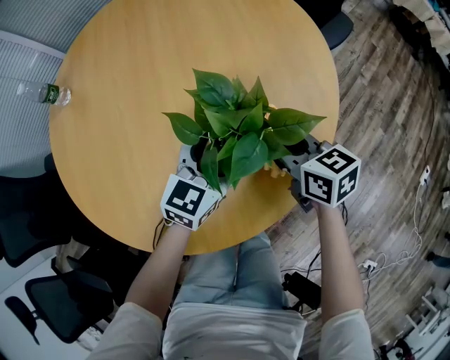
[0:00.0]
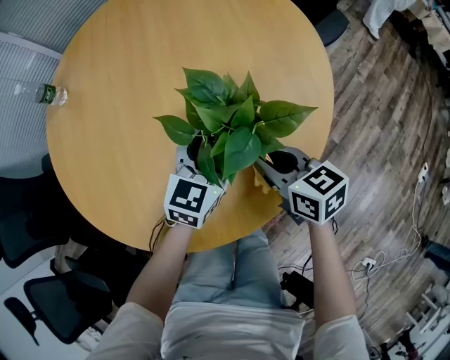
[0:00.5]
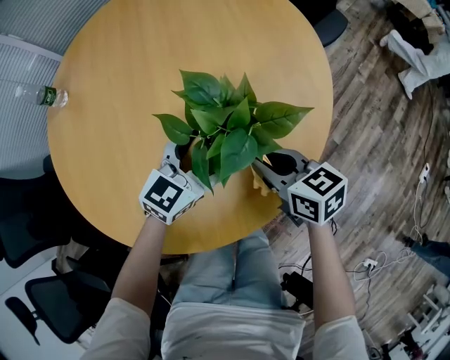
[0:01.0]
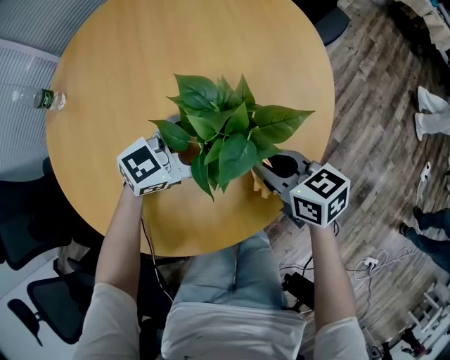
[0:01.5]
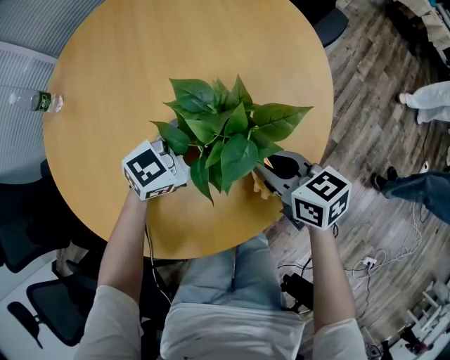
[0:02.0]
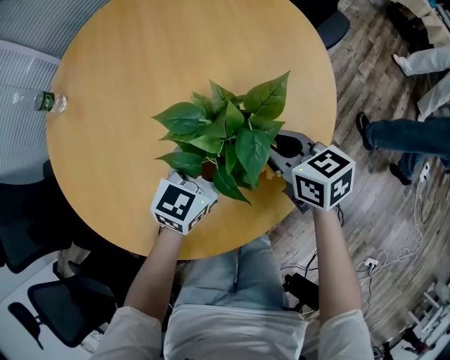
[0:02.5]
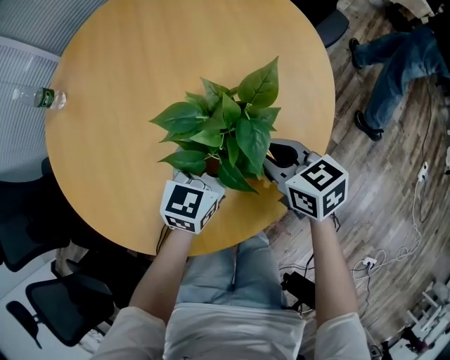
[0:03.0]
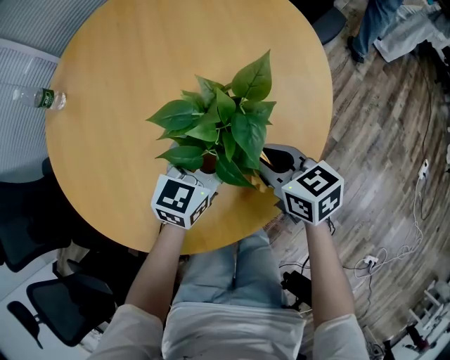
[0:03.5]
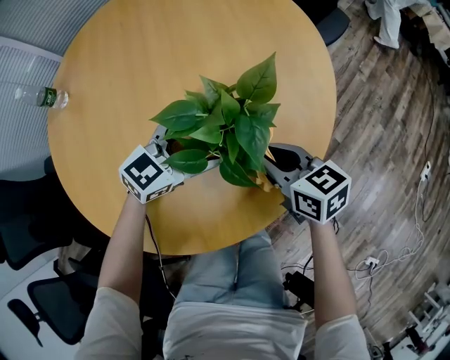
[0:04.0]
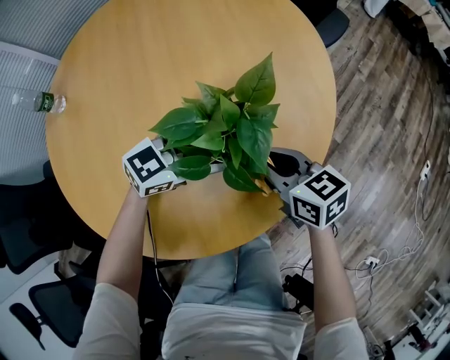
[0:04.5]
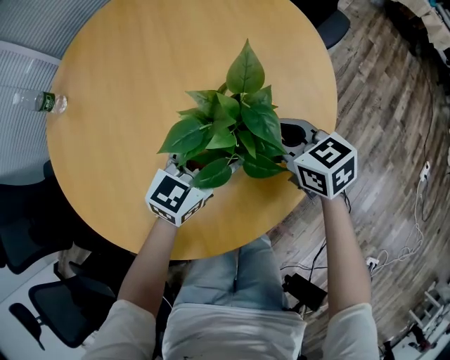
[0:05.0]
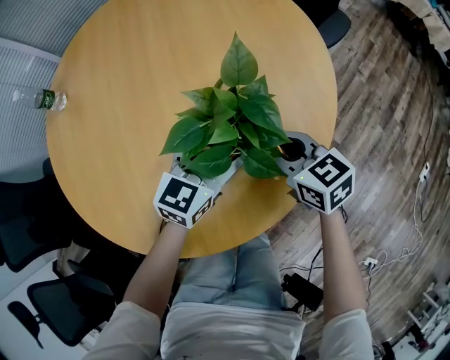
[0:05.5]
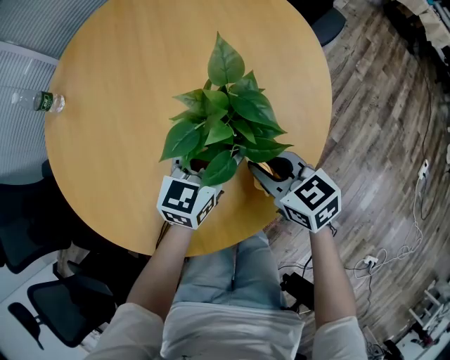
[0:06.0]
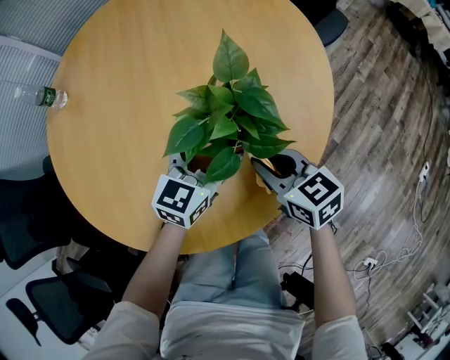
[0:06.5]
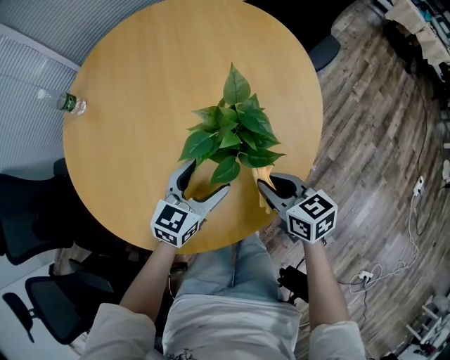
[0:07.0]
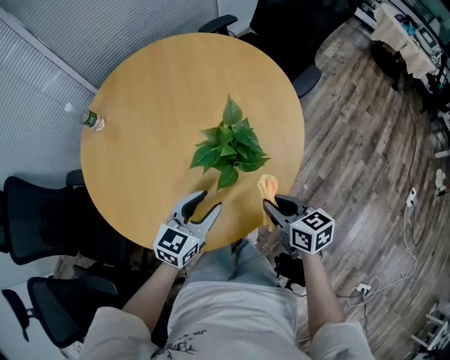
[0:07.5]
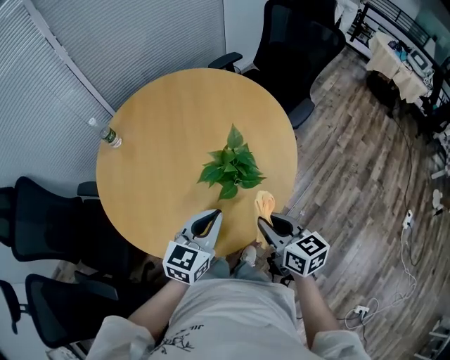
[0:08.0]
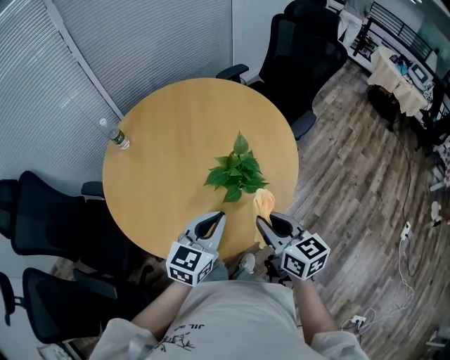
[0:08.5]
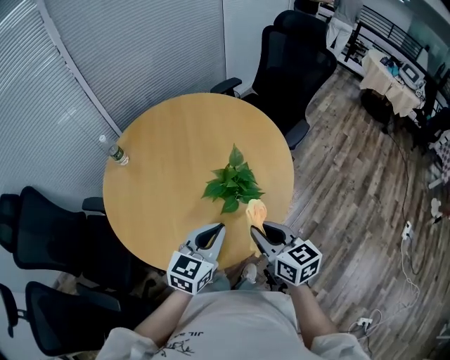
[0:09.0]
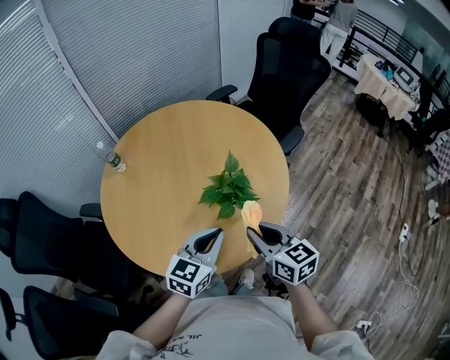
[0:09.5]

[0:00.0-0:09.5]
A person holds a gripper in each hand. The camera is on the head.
0:00.0 to 0:02.0: The left gripper turns by about 30 degrees.
0:04.0 to 0:05.5: The left gripper rotates approximately 30 degrees.
0:05.5 to 0:07.5: The right gripper moves backward and upward, some 15 cm. The left gripper goes approximately 15 cm backward, upward and to the left, and closes its fingers.
0:07.5 to 0:09.5: Both grippers travel together upward, approximately 15 cm. The left gripper closes its fingers.

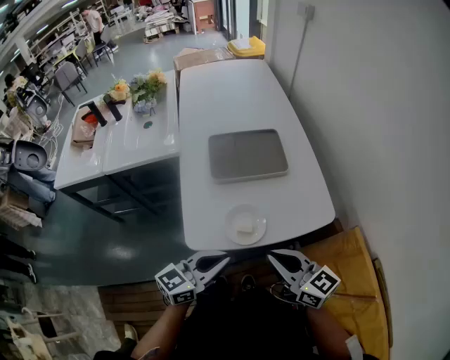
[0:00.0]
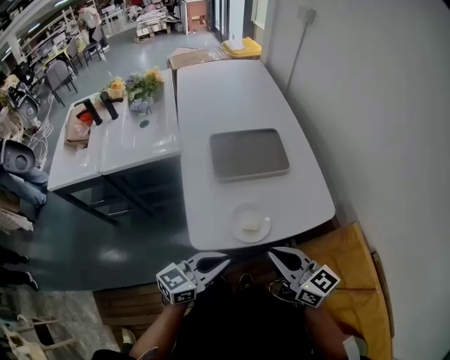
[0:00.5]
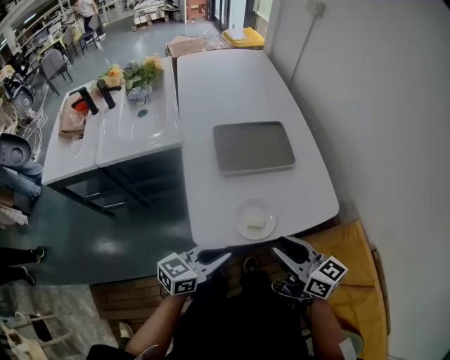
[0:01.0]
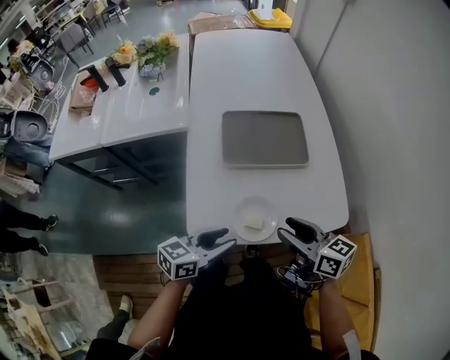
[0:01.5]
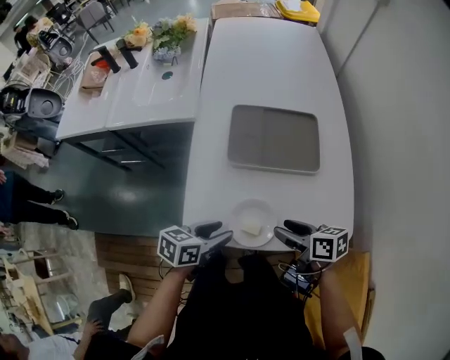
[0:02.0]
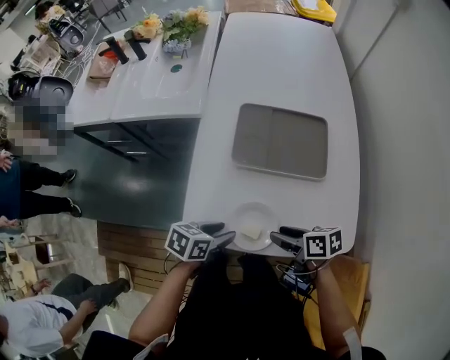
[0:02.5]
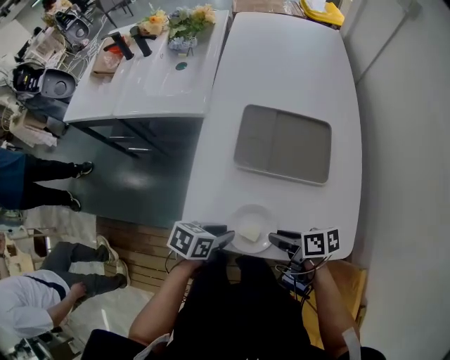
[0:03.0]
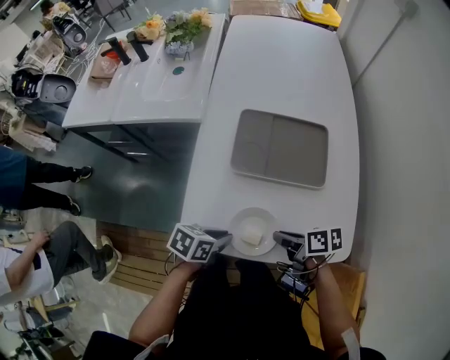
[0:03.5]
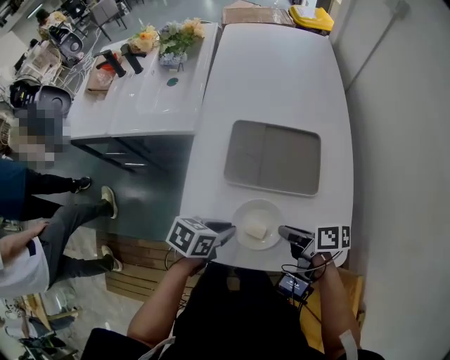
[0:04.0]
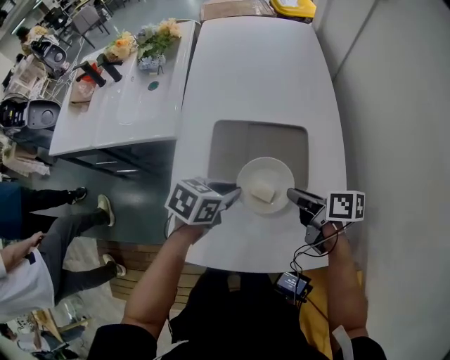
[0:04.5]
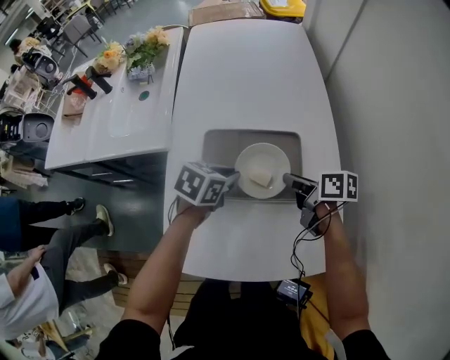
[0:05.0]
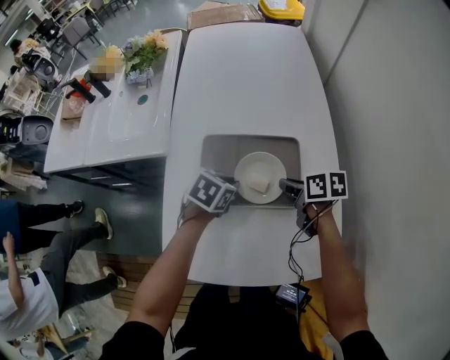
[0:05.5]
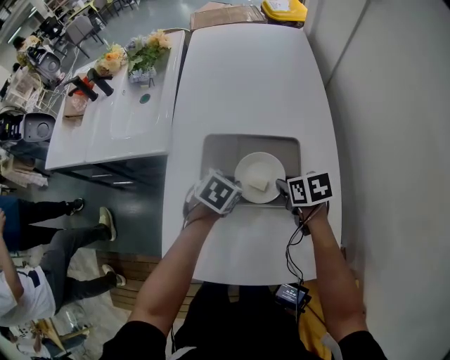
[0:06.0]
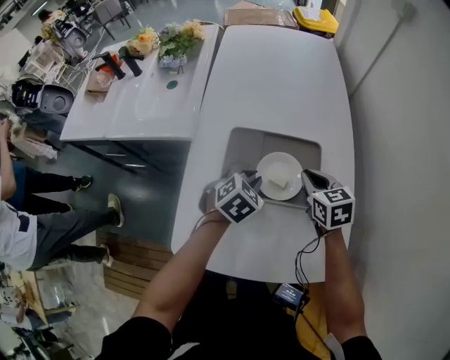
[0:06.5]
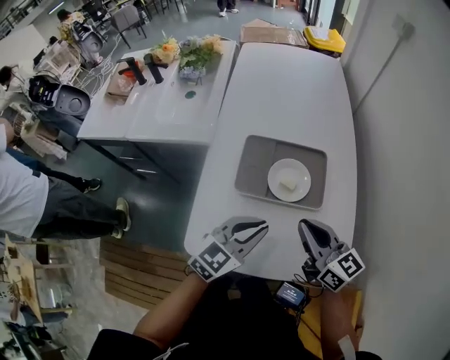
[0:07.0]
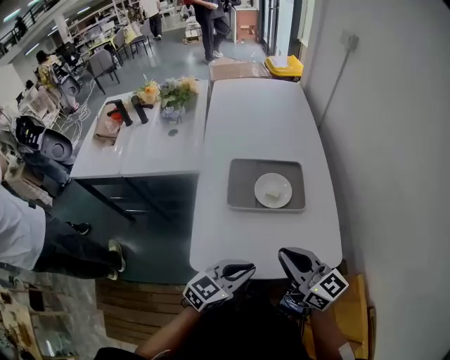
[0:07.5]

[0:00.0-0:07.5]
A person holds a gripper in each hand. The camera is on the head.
0:00.0 to 0:02.0: Both grippers move downward and forward, some 20 cm. The right gripper changes its angle by some 40 degrees, and opens its fingers, while the left gripper rotates roughly 40 degrees, and opens up.
0:02.0 to 0:04.0: The left gripper shifts by roughly 10 cm, and closes up. Meanwhile the right gripper ends up some 5 cm from where it was, and closes.
0:04.0 to 0:05.5: The right gripper ends up some 20 cm from where it was, and swivels some 20 degrees. The left gripper ends up roughly 20 cm from where it was, and changes its angle by roughly 20 degrees.
0:05.5 to 0:07.5: Both grippers travel together backward and upward, roughly 35 cm. The right gripper tips its fingers upward by about 40 degrees. The left gripper tips its fingers upward by approximately 40 degrees.

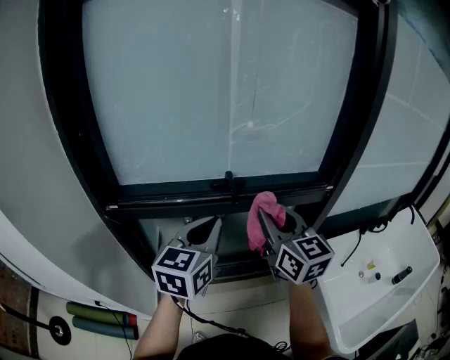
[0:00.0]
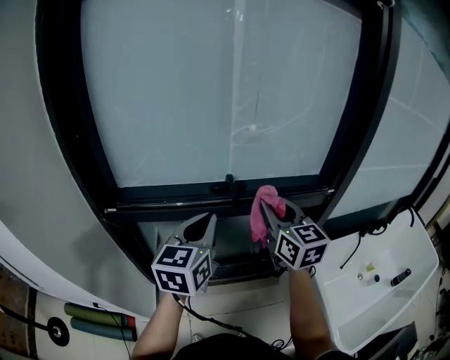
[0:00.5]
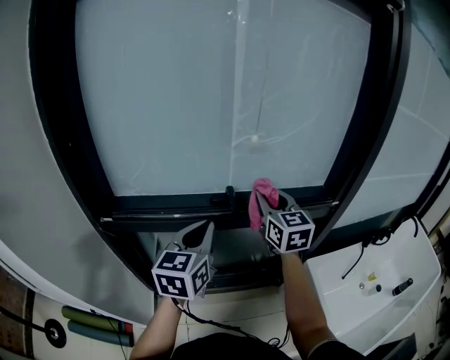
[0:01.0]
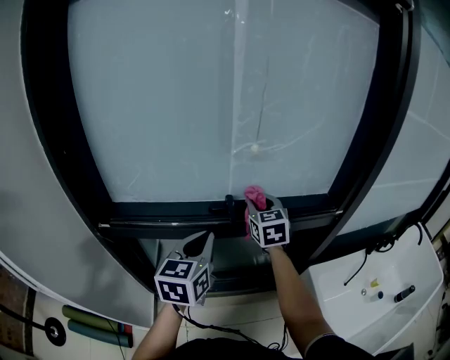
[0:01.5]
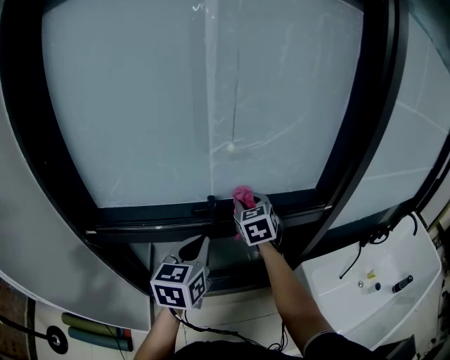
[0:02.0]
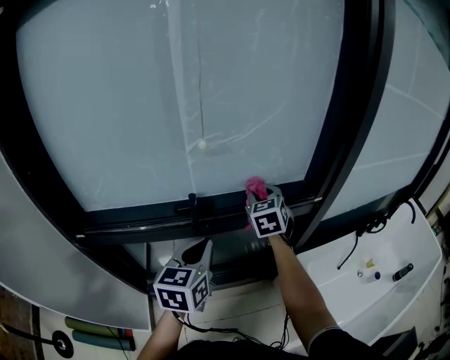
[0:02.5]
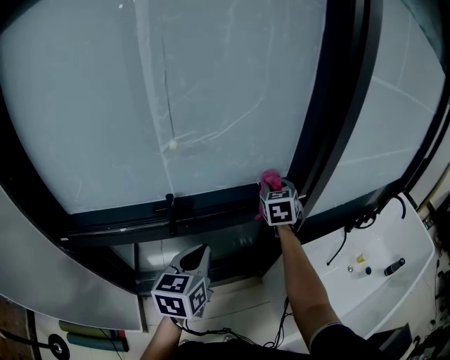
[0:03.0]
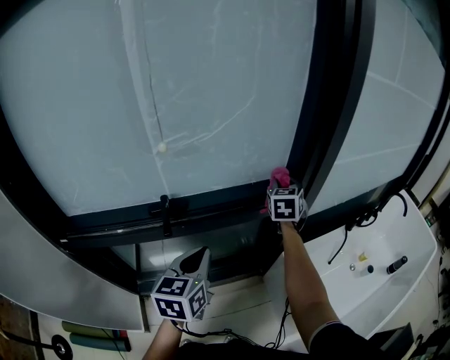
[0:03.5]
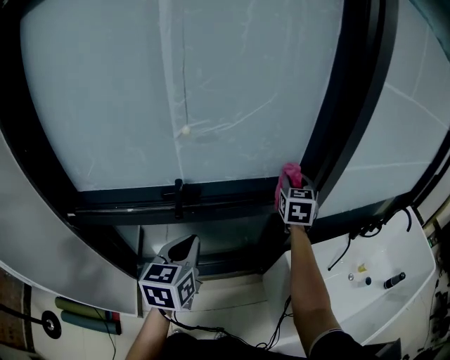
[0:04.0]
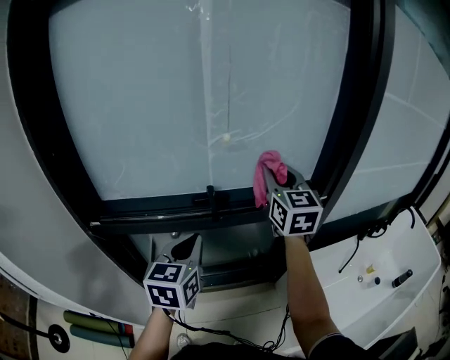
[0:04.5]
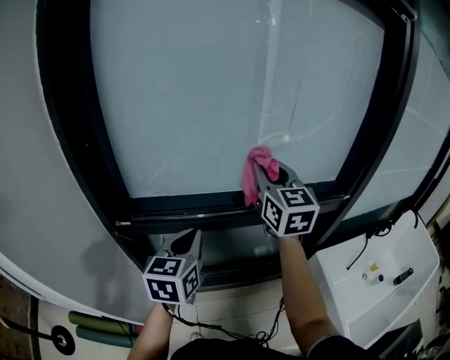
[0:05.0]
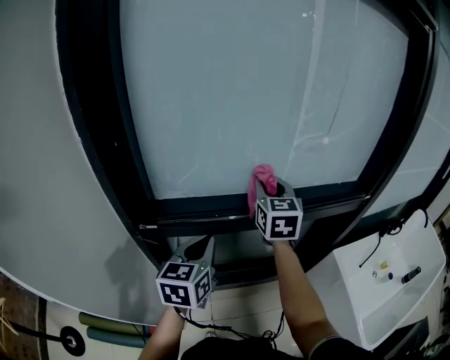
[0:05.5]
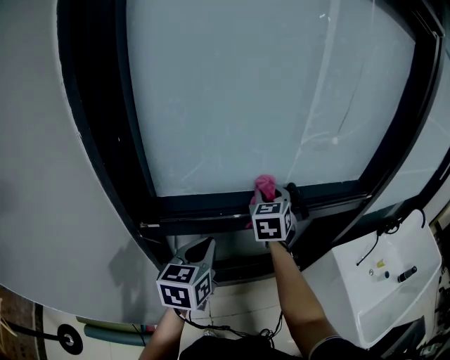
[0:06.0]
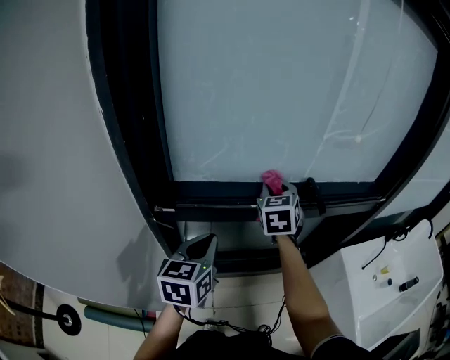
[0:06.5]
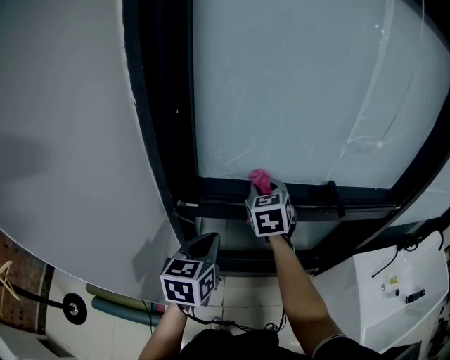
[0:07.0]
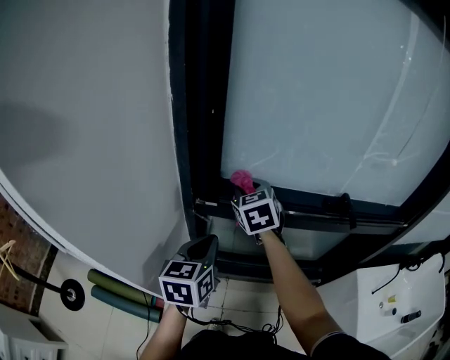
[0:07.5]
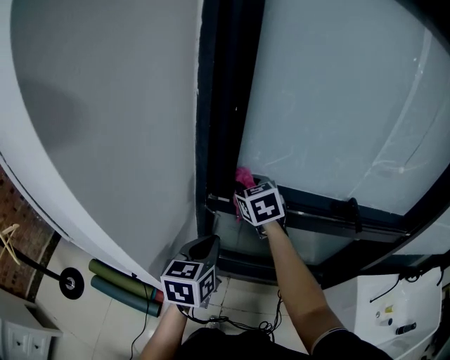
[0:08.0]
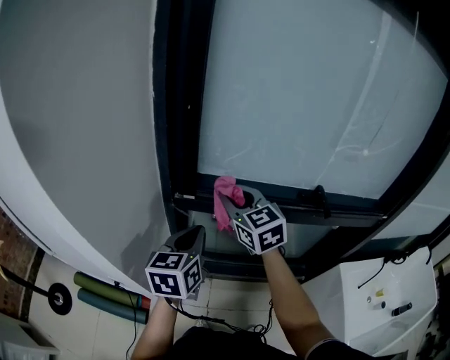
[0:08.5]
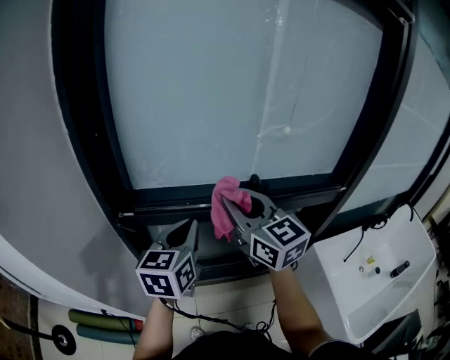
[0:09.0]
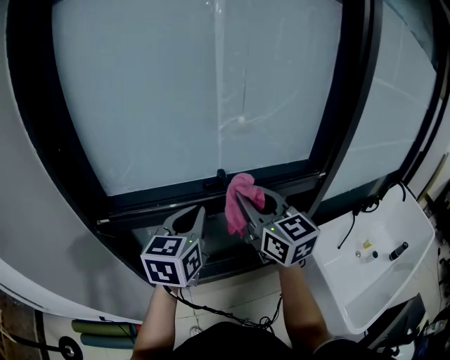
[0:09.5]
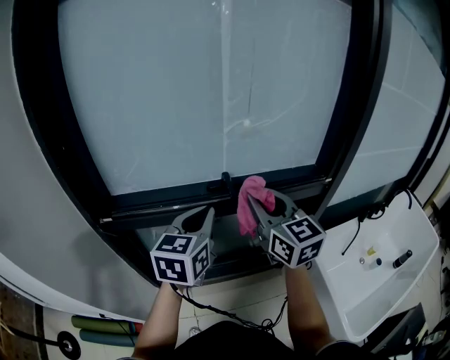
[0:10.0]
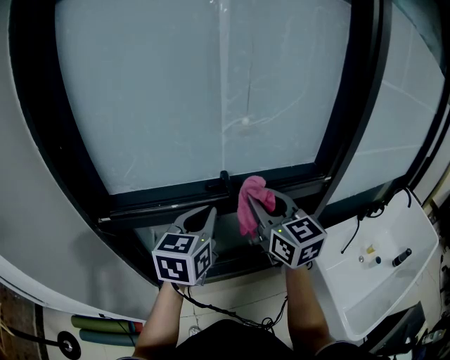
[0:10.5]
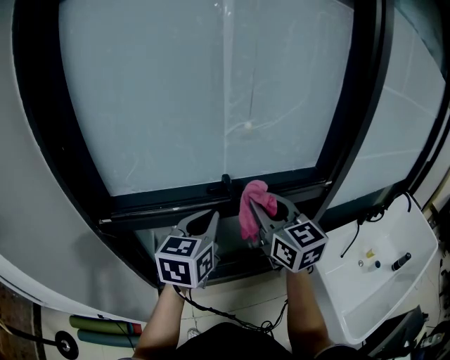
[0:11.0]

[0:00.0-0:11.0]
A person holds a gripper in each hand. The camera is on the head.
0:00.0 to 0:02.0: The right gripper shifts about 25 cm forward and downward, and swivels approximately 30 degrees, while the left gripper moves forward and downward, roughly 10 cm.
0:02.0 to 0:03.5: The right gripper goes roughly 25 cm to the right, and swivels some 30 degrees. The left gripper moves to the right, approximately 10 cm.
0:03.5 to 0:05.5: The two grippers go approximately 35 cm to the left. The right gripper changes its angle by approximately 20 degrees.
0:05.5 to 0:07.5: The left gripper moves to the left and backward, approximately 15 cm. The right gripper travels to the left by approximately 25 cm, and rotates about 30 degrees.
0:07.5 to 0:09.0: The left gripper is displaced to the right and upward by some 20 cm. Meanwhile the right gripper moves to the right, backward and upward, approximately 30 cm, and swivels some 30 degrees.
0:09.0 to 0:11.0: Both grippers move to the right, about 15 cm.
